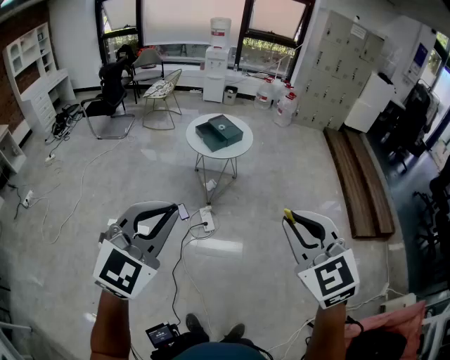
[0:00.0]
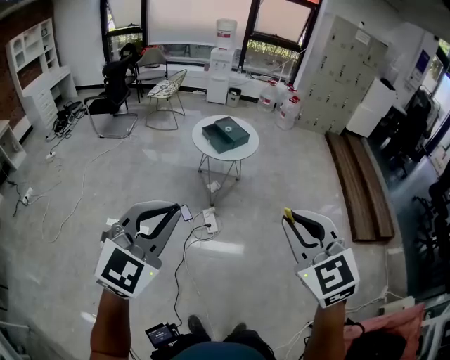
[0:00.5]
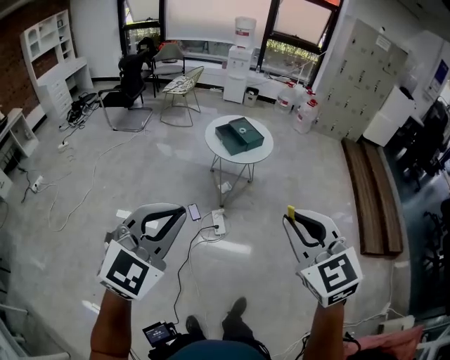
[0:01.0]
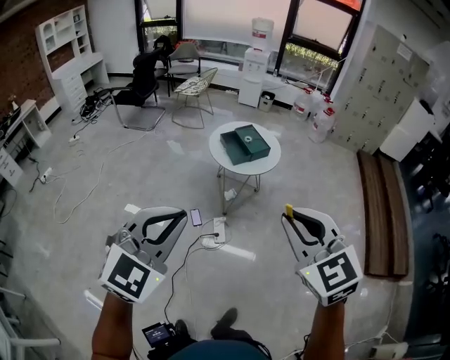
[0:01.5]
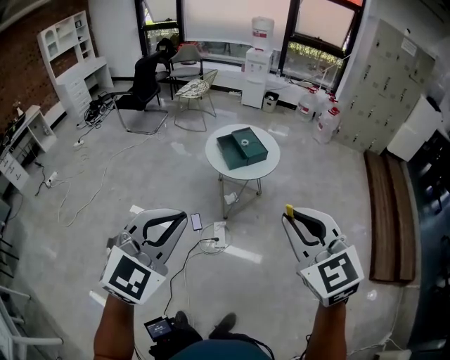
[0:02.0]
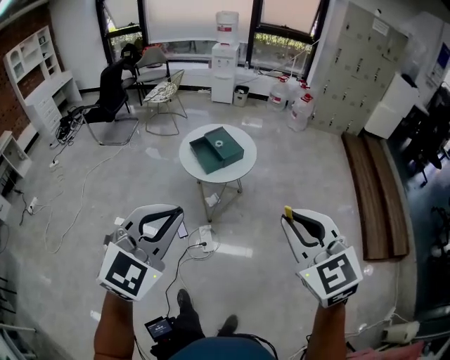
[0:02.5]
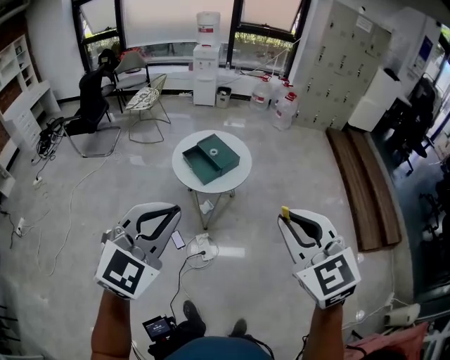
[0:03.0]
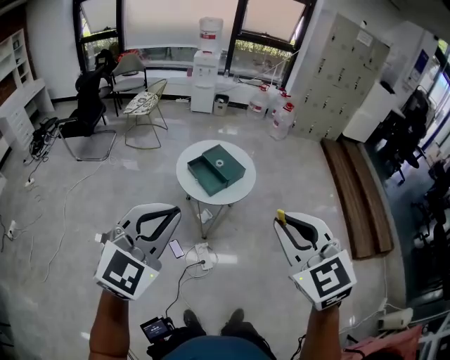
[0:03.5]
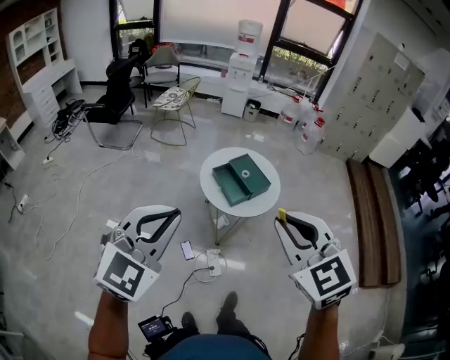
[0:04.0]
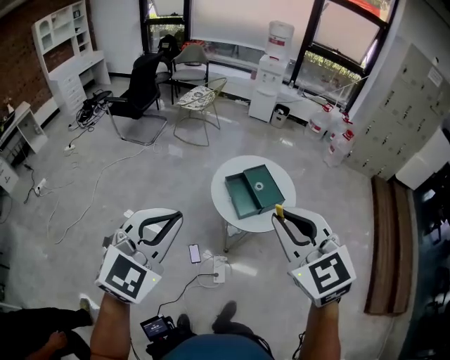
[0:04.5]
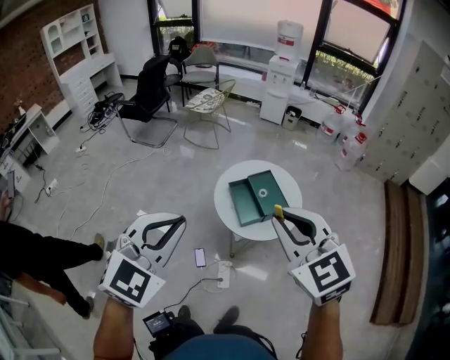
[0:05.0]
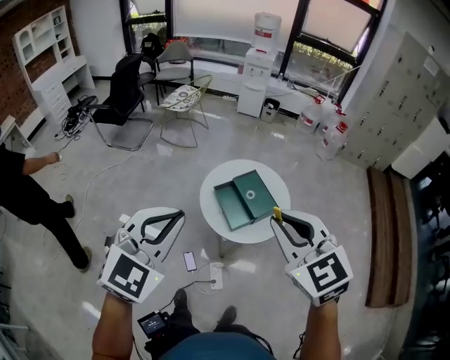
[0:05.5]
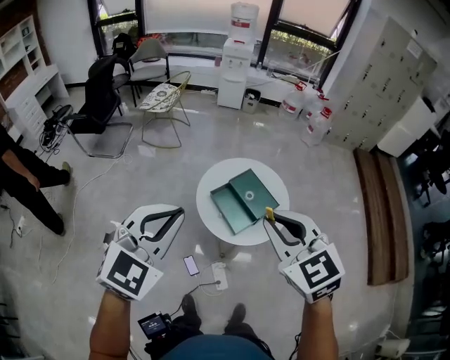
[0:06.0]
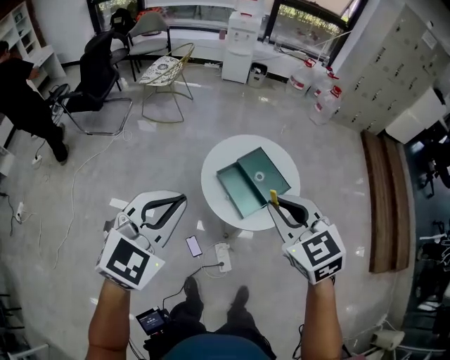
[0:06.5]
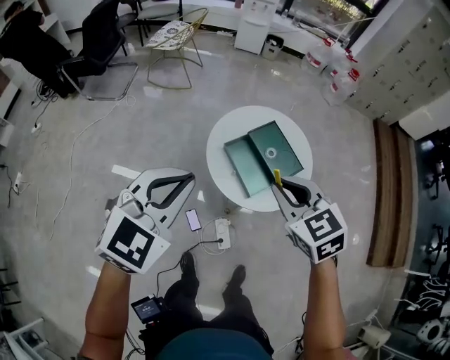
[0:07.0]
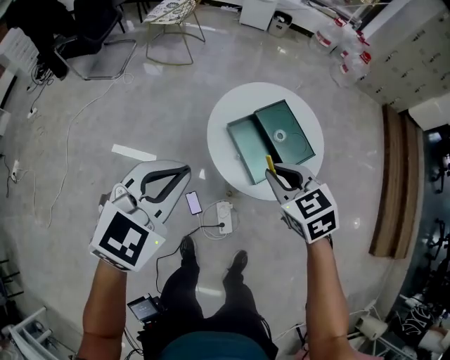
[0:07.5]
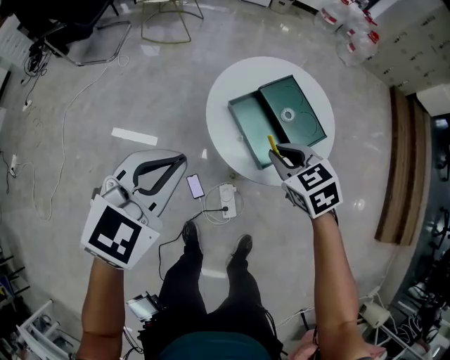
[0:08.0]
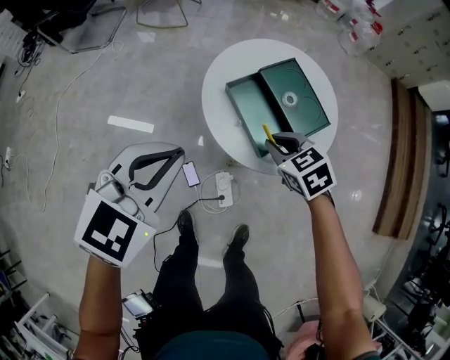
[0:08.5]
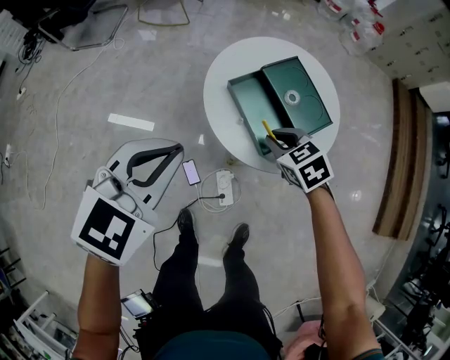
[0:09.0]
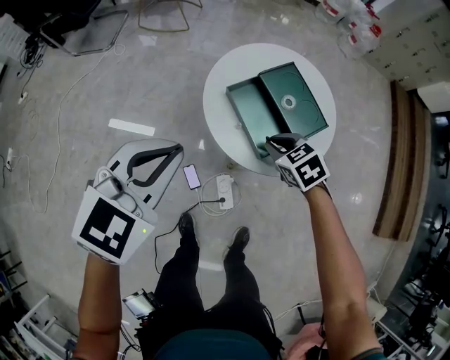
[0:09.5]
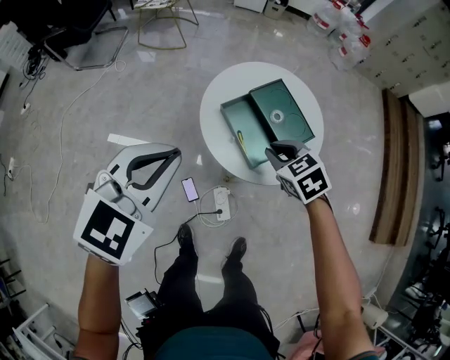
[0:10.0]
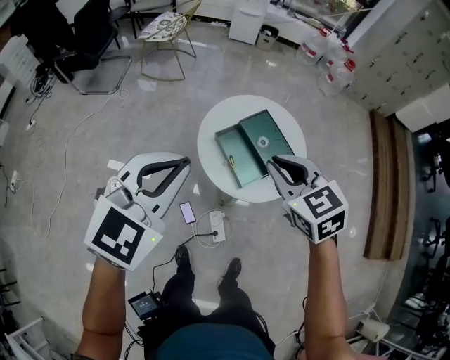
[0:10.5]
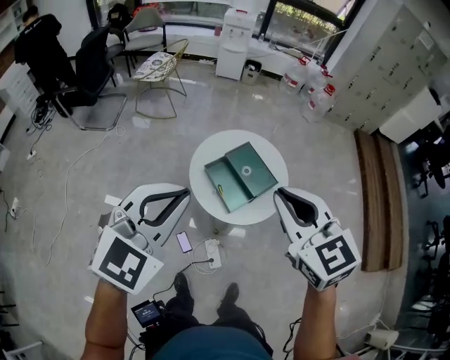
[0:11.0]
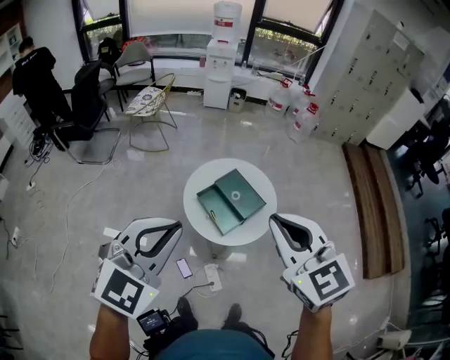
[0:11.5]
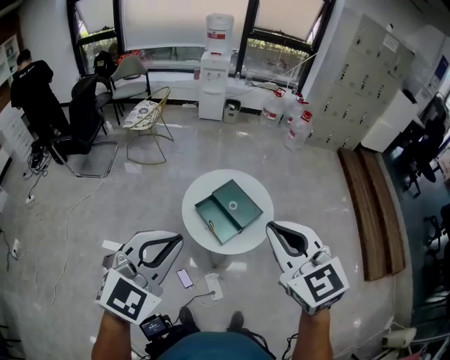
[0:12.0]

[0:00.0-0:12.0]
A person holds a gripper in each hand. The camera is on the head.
0:00.0 to 0:02.0: The right gripper is displaced forward by roughly 30 cm, while the left gripper travels forward and to the right by some 30 cm.
0:02.0 to 0:04.0: Both grippers are carried forward and to the left, roughly 40 cm.
0:04.0 to 0:06.0: The two grippers go roughly 40 cm forward.
0:06.0 to 0:08.0: Both grippers travel together downward and forward, about 50 cm. The right gripper swivels approximately 30 degrees.
0:08.0 to 0:10.0: The right gripper reaches about 10 cm downward, then returns.
0:10.0 to 0:12.0: The right gripper shifts approximately 60 cm upward, and points its fingers about 40 degrees further upward, while the left gripper shifts roughly 40 cm upward and backward.

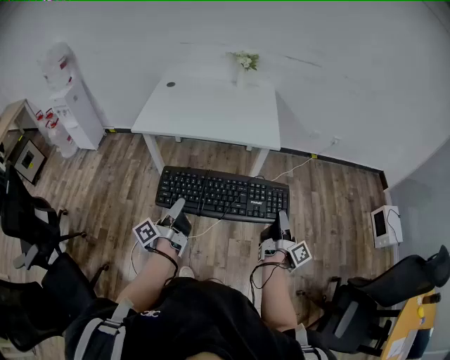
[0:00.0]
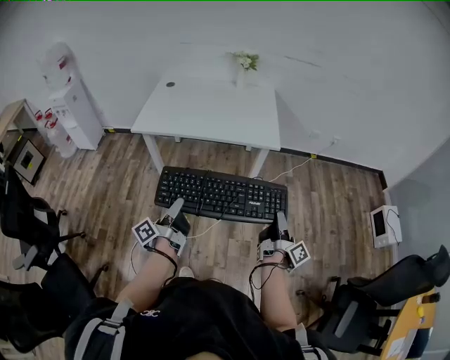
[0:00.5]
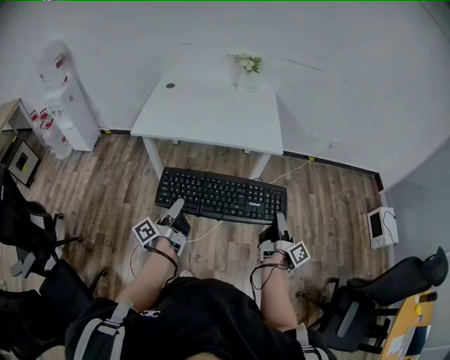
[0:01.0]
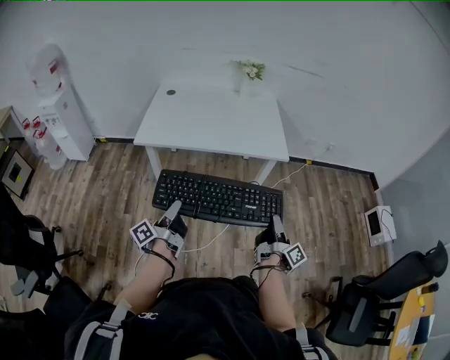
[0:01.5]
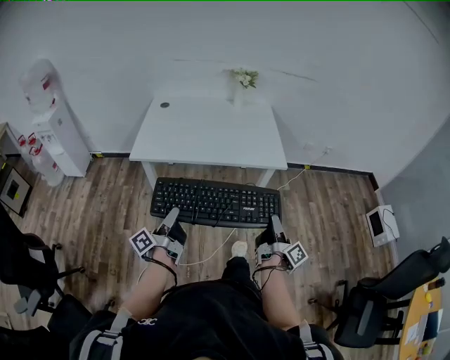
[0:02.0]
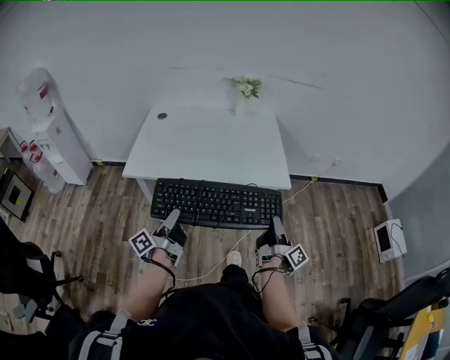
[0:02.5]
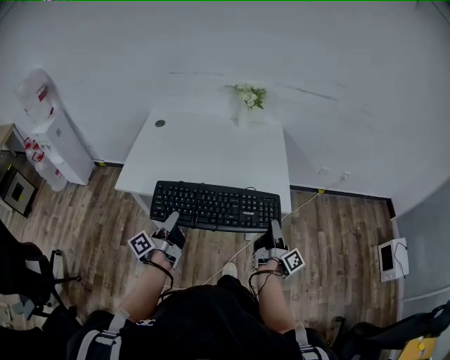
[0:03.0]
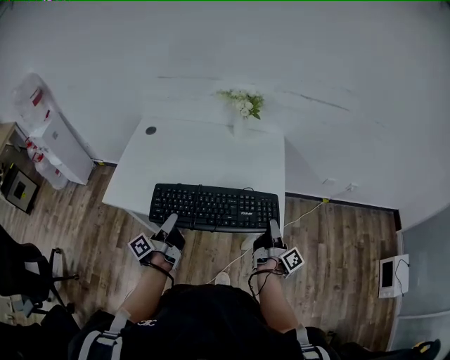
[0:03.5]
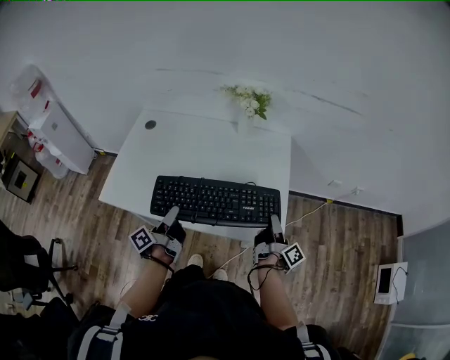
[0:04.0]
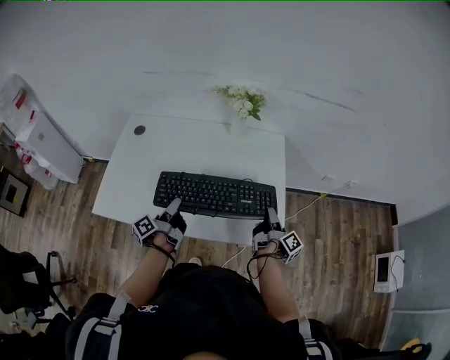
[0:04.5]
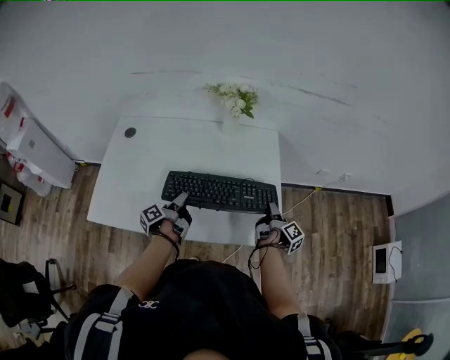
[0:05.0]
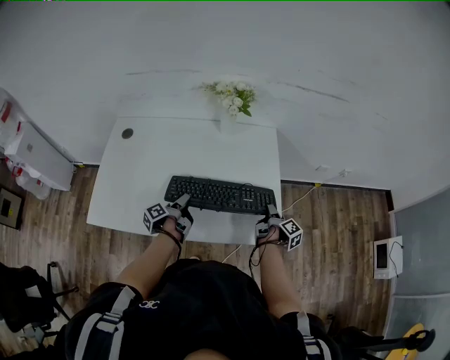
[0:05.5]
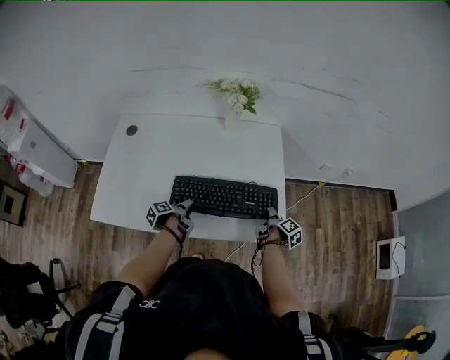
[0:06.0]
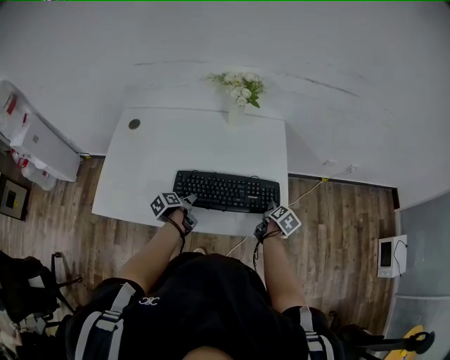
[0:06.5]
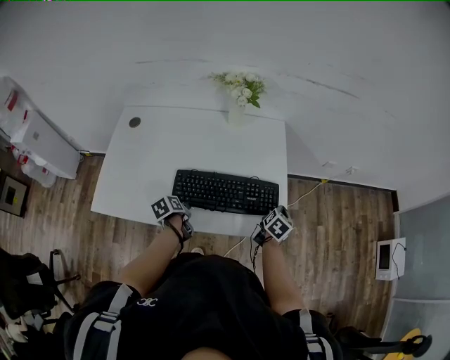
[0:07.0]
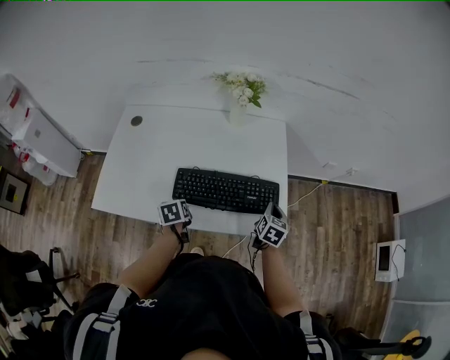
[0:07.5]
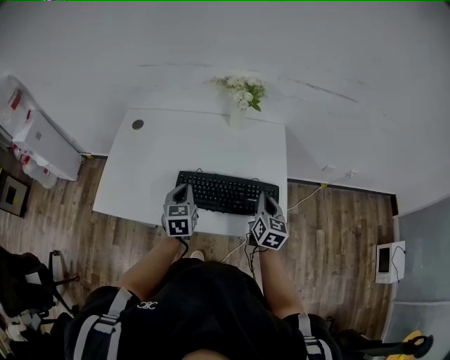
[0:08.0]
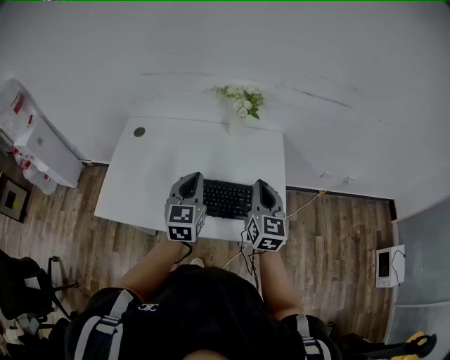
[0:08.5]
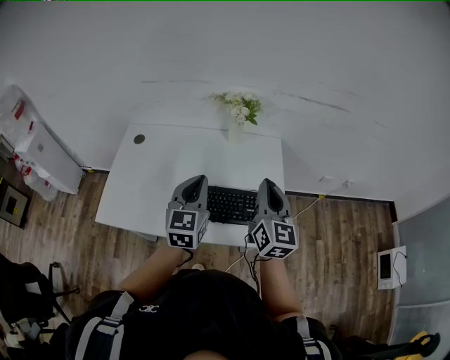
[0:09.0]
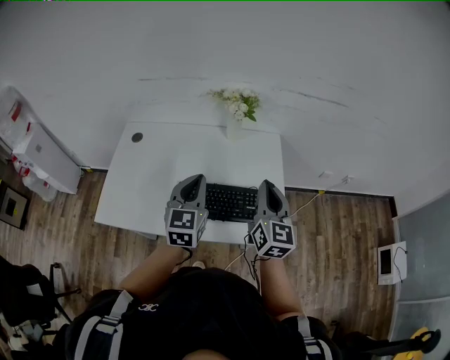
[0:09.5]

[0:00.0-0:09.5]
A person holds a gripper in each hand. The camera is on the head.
0:00.0 to 0:02.0: The right gripper ends up roughly 15 cm from where it was.
0:02.0 to 0:04.0: The right gripper ends up approximately 50 cm from where it was.
0:04.0 to 0:05.5: The right gripper is displaced downward by roughly 10 cm, and turns by approximately 30 degrees.
0:05.5 to 0:07.5: The right gripper twists roughly 70 degrees counterclockwise, seen from behind, and opens and closes again.
0:07.5 to 0:09.5: The right gripper is displaced upward by roughly 25 cm, and angles its fingers upward, by about 30 degrees.

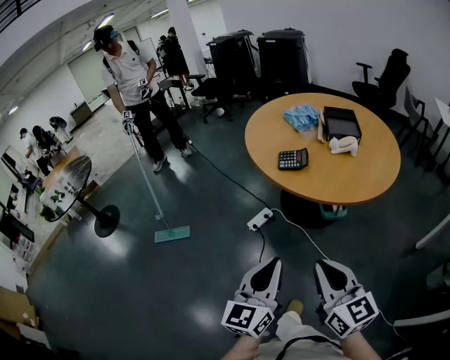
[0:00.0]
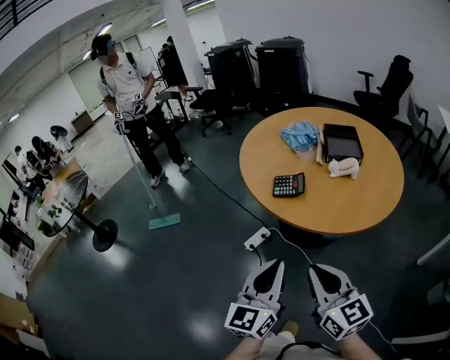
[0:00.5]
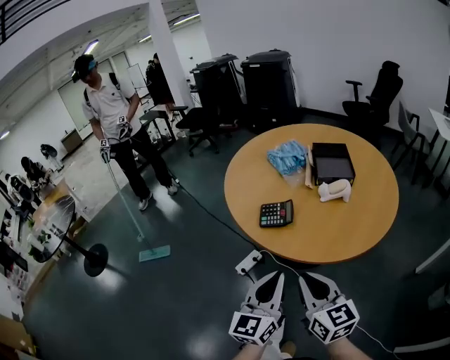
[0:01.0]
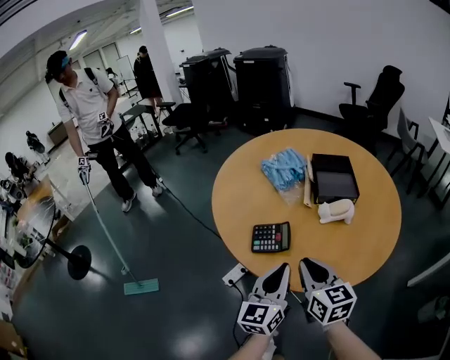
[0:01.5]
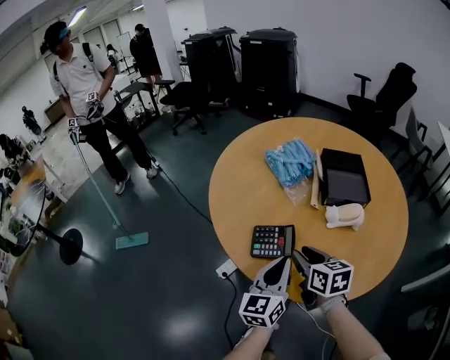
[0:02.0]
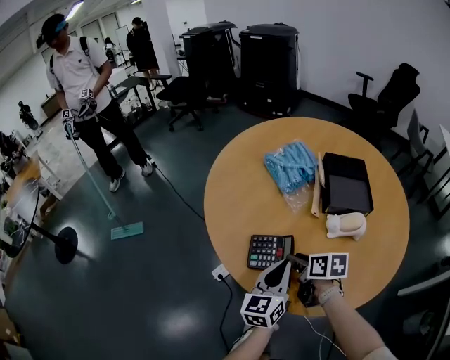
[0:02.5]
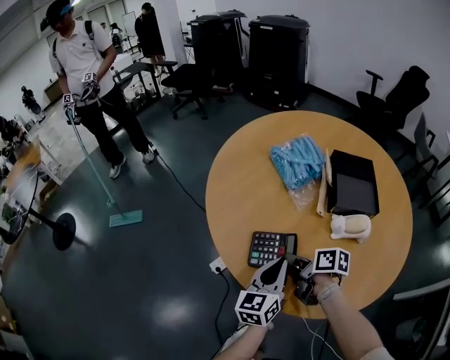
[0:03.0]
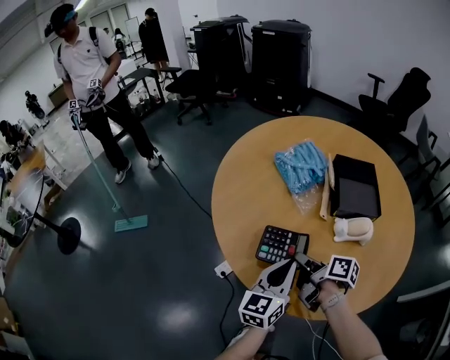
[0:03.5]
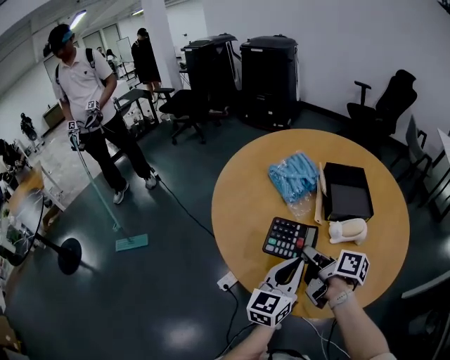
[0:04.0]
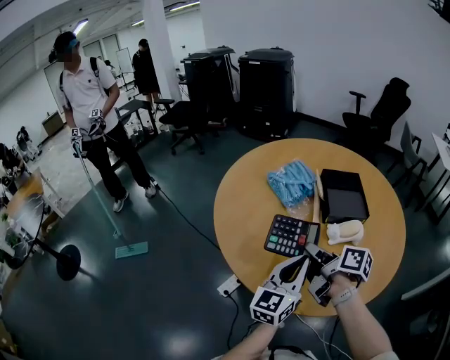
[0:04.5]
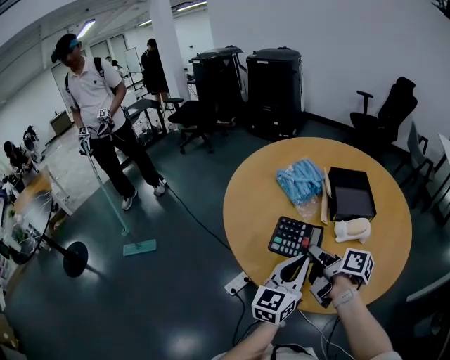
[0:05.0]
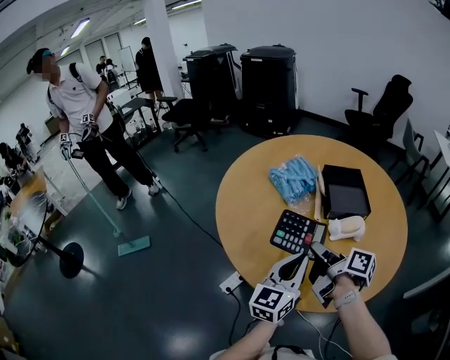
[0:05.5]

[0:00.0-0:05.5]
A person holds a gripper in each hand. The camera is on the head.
0:00.0 to 0:02.0: The pair of grippers is taken forward, roughly 50 cm. The right gripper rotates about 30 degrees, and opens up.
0:02.0 to 0:03.5: The left gripper changes place by about 5 cm. Meanwhile the right gripper travels forward by about 5 cm, and twists some 50 degrees clockwise, seen from behind.
0:03.5 to 0:05.5: The left gripper moves upward, roughly 5 cm. The right gripper moves upward, approximately 10 cm.
